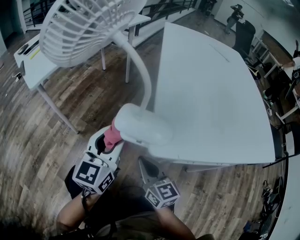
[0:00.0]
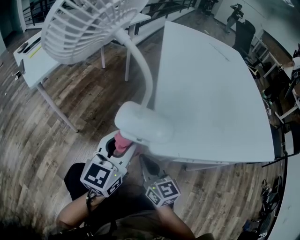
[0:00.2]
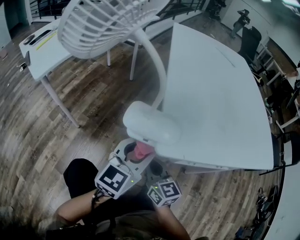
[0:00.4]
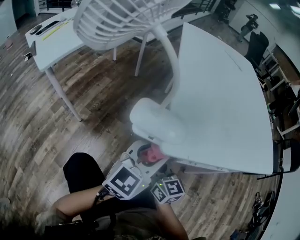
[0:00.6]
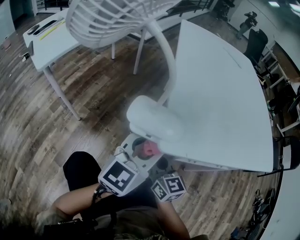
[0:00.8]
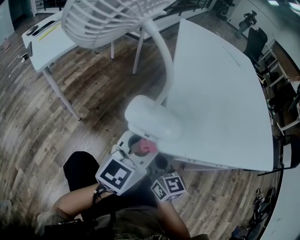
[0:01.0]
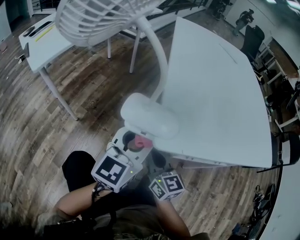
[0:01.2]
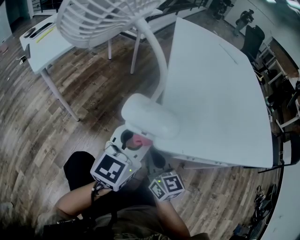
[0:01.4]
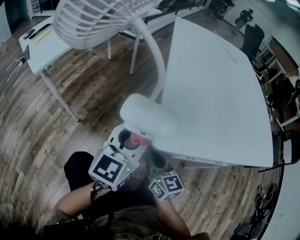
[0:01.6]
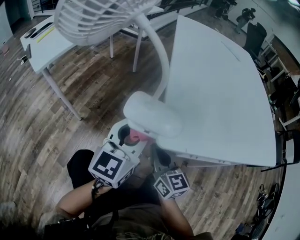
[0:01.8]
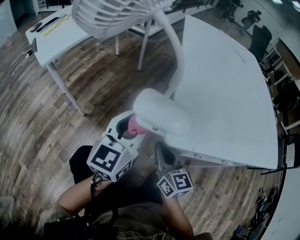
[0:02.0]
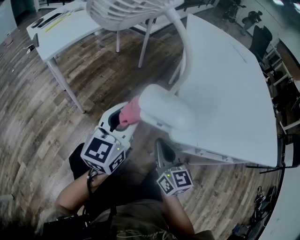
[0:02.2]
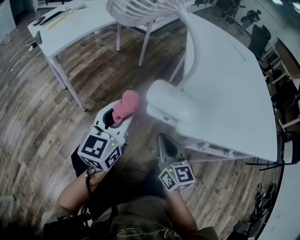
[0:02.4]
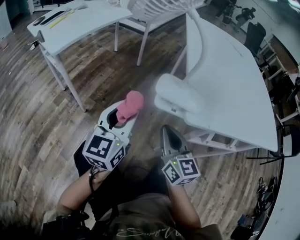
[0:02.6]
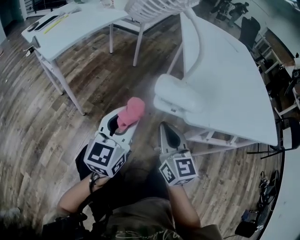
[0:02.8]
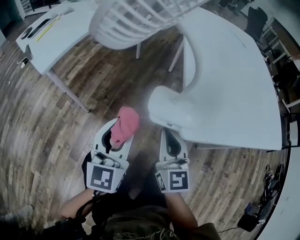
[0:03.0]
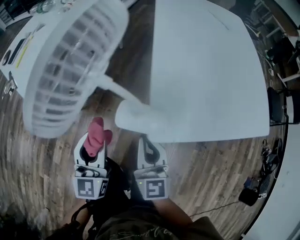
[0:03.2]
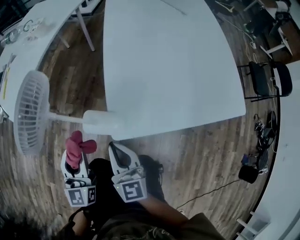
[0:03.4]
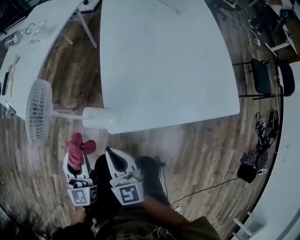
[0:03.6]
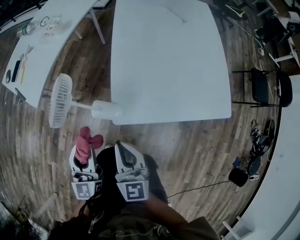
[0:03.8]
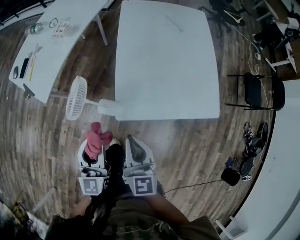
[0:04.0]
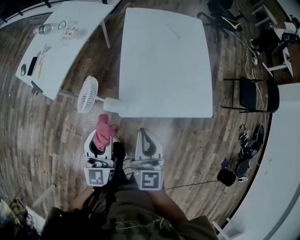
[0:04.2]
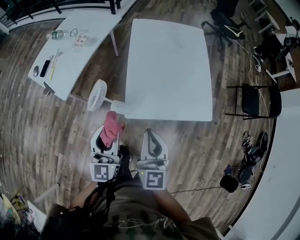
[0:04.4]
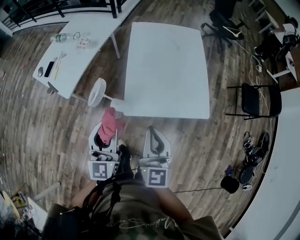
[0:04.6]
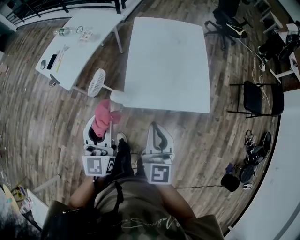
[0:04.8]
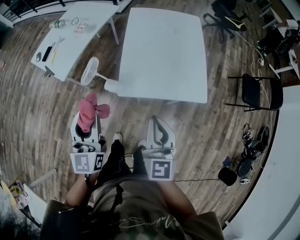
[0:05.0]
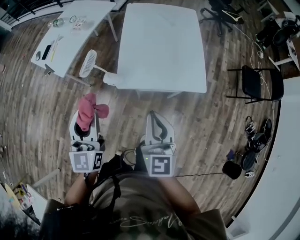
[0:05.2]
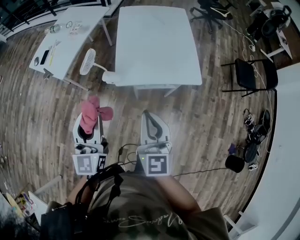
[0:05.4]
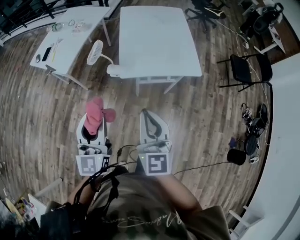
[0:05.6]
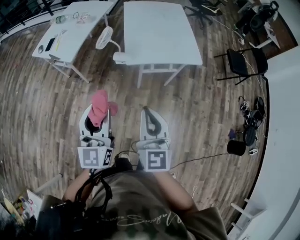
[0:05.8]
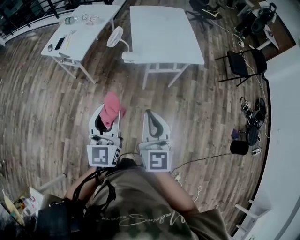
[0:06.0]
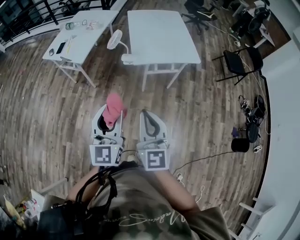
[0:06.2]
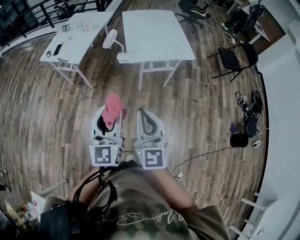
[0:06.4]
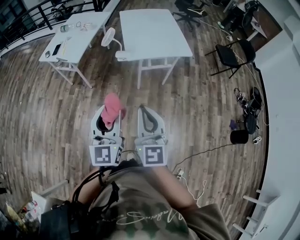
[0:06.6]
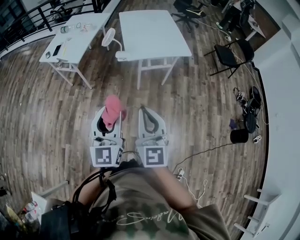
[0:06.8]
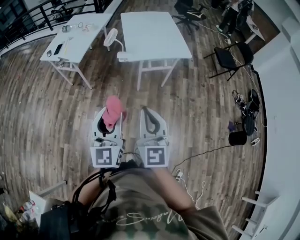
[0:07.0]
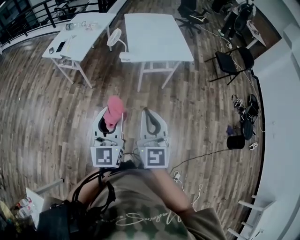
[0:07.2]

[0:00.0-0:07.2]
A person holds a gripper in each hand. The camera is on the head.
0.0 to 1.4 s: The left gripper heads to the right, covering about 10 cm.
1.4 to 2.8 s: The right gripper moves upward, approximately 5 cm. Meanwhile the left gripper goes roughly 15 cm to the left.
2.8 to 4.4 s: The grippers both shift upward by about 40 cm.
4.4 to 5.8 s: Both grippers move backward, approximately 30 cm.
5.8 to 7.2 s: Both grippers travel together backward, roughly 20 cm.

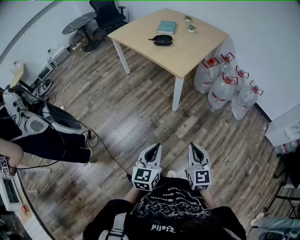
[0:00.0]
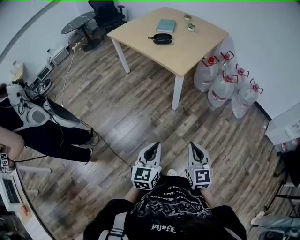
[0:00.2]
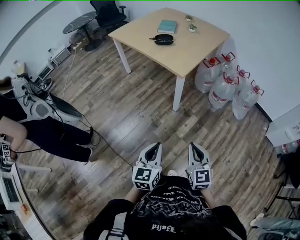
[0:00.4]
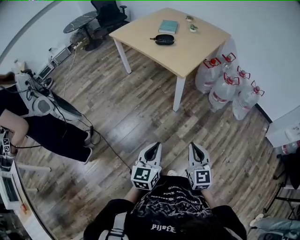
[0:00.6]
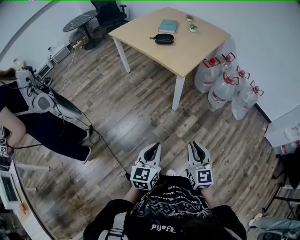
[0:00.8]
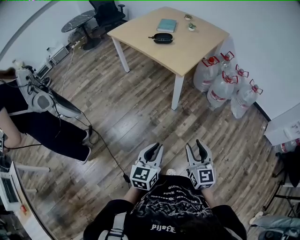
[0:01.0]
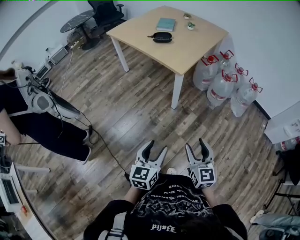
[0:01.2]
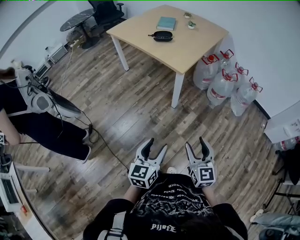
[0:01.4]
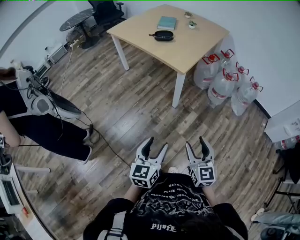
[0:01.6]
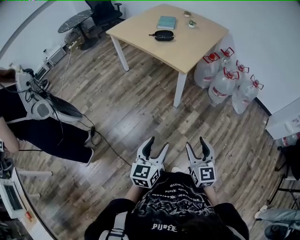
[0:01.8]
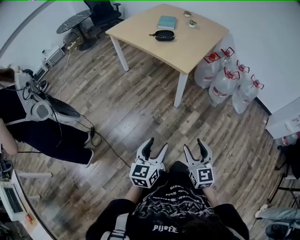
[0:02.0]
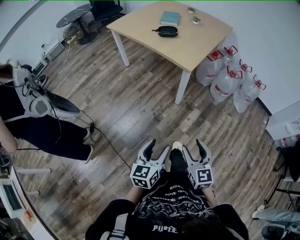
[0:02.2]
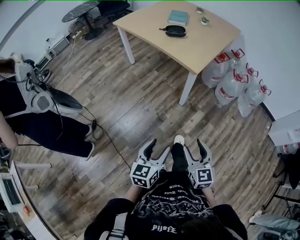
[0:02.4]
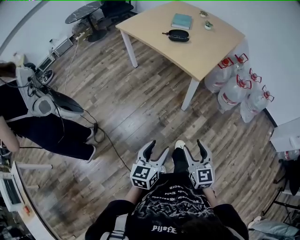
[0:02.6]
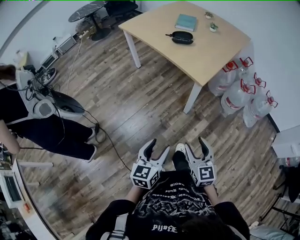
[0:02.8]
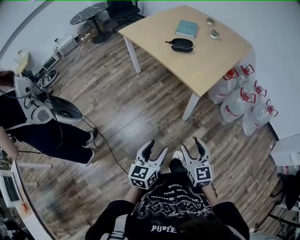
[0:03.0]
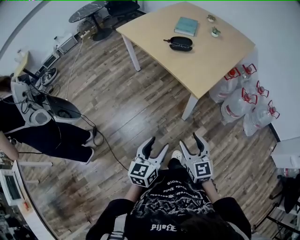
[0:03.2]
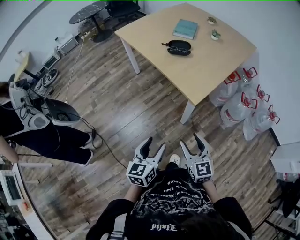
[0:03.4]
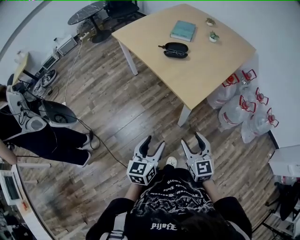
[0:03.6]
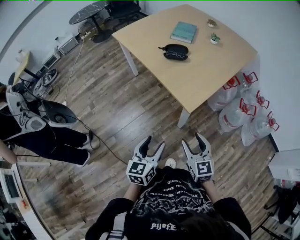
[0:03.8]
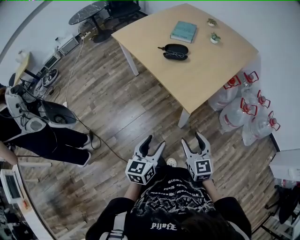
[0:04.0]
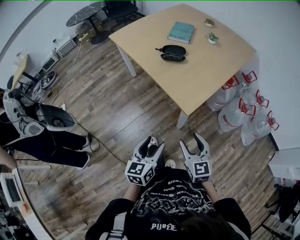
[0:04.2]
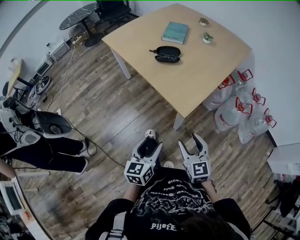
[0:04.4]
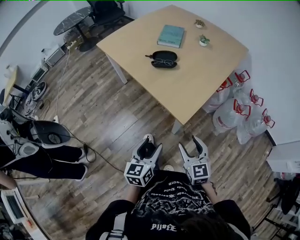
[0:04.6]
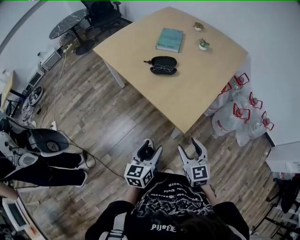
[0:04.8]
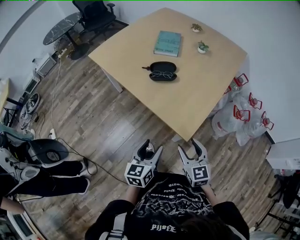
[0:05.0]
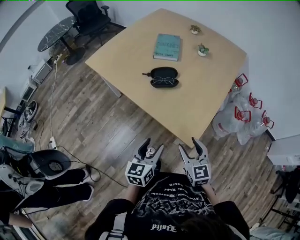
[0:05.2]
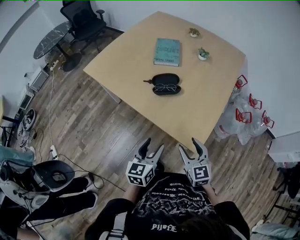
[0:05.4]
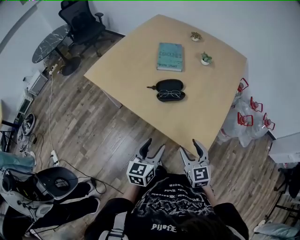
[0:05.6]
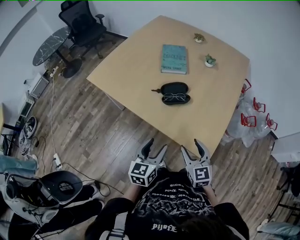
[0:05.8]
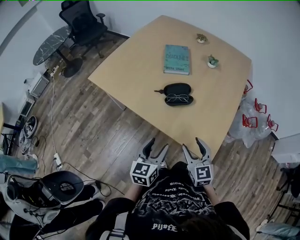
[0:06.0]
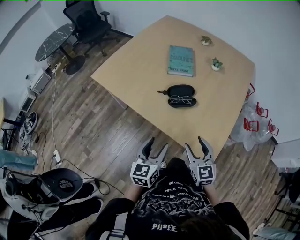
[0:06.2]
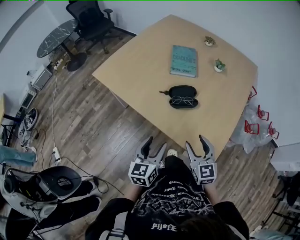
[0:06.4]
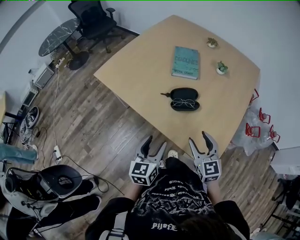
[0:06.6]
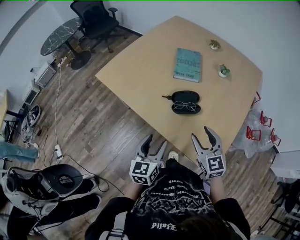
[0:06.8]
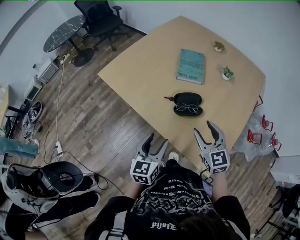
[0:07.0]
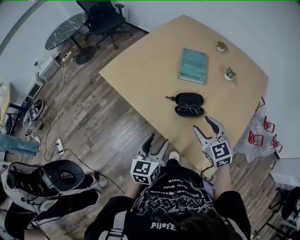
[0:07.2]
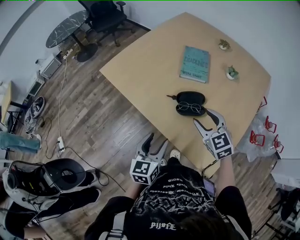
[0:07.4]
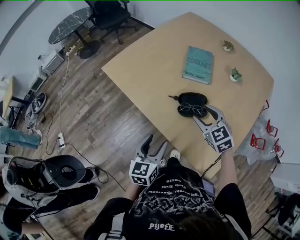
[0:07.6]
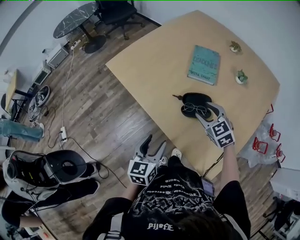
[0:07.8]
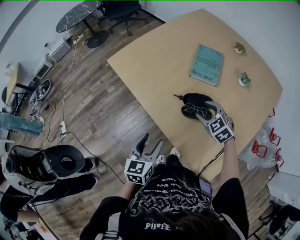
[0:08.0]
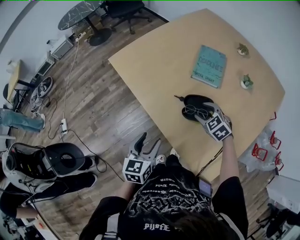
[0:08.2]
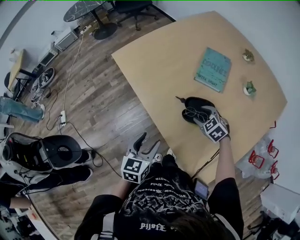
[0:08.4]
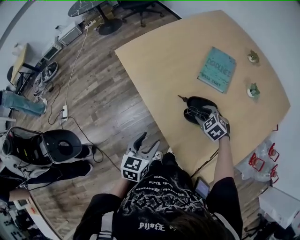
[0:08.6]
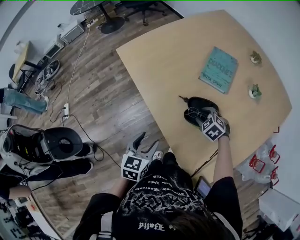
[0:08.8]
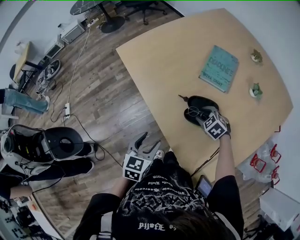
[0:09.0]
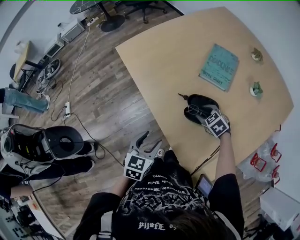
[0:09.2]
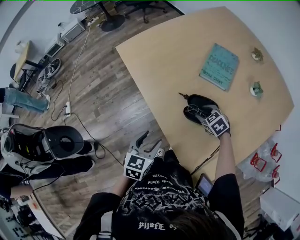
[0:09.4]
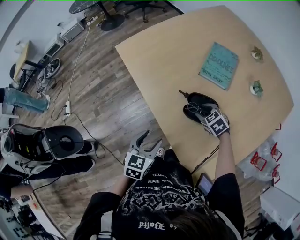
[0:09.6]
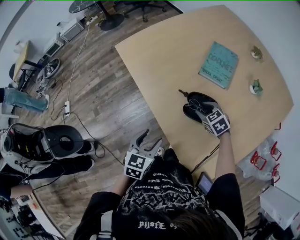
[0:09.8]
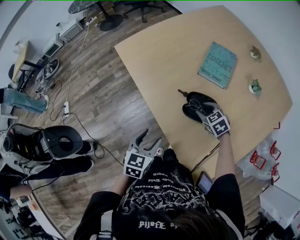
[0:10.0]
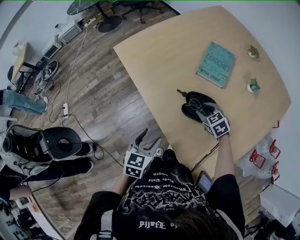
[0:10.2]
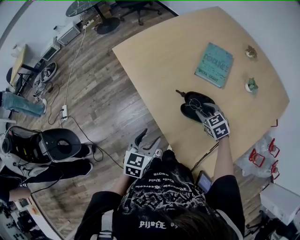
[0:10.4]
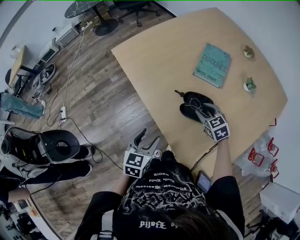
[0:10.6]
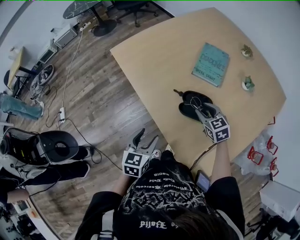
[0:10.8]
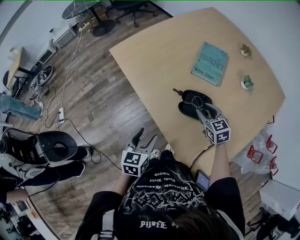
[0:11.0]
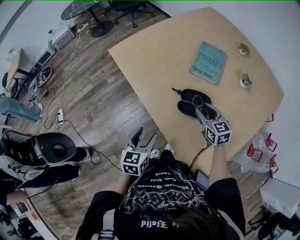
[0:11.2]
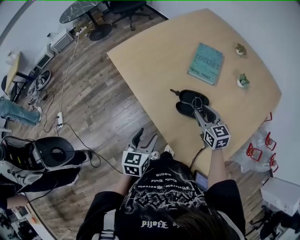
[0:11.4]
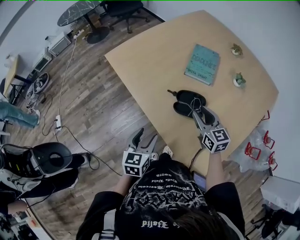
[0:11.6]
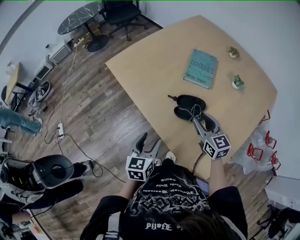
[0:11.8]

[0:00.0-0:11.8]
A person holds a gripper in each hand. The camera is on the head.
0.0 to 1.4 s: The right gripper opens its fingers. The left gripper opens up.
1.4 to 3.0 s: The left gripper travels forward by some 20 cm, while the right gripper is displaced forward and to the left by about 20 cm.
3.0 to 4.4 s: The grippers both shift forward and to the right by approximately 20 cm.
4.4 to 6.0 s: Both grippers travel together forward and to the left, about 35 cm.
6.0 to 7.4 s: The right gripper travels forward by about 20 cm, and swivels some 30 degrees. Meanwhile the left gripper is displaced forward by approximately 10 cm.
7.4 to 8.8 s: The left gripper goes about 5 cm downward. Meanwhile the right gripper shifts approximately 20 cm downward and forward, and angles its fingers downward, by roughly 30 degrees.
8.8 to 10.4 s: The right gripper rotates approximately 20 degrees.
10.4 to 11.8 s: The right gripper goes about 15 cm upward and backward, and changes its angle by roughly 40 degrees.

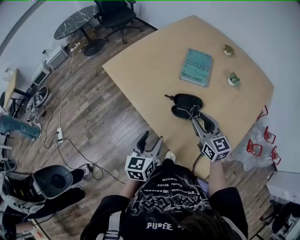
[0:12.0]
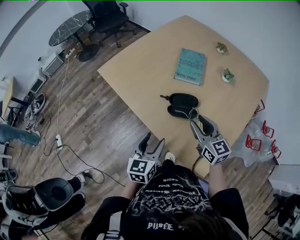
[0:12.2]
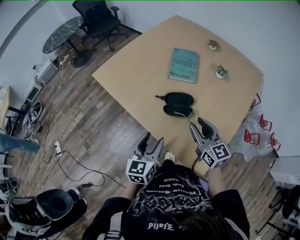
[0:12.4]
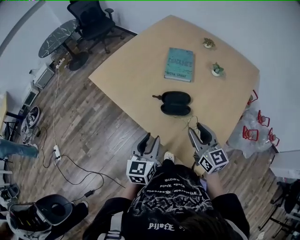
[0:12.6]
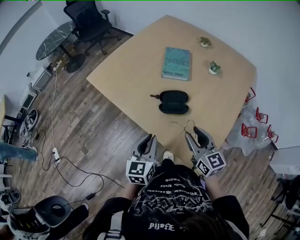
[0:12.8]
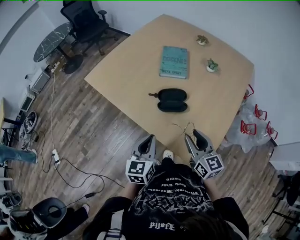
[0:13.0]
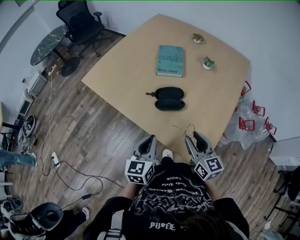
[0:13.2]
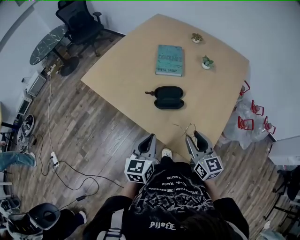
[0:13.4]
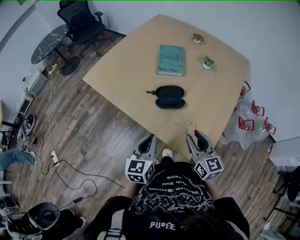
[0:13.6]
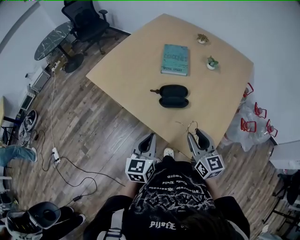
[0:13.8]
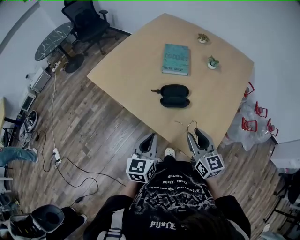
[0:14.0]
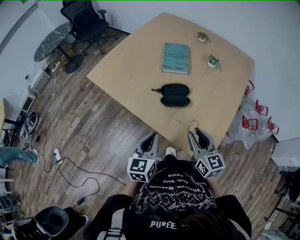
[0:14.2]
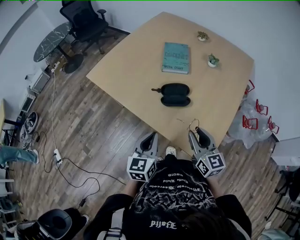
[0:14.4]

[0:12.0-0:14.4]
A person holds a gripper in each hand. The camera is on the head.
12.0 to 13.2 s: The left gripper changes place by roughly 5 cm, and closes. Meanwhile the right gripper goes roughly 15 cm backward.
13.2 to 14.4 s: The grippers move only a little.

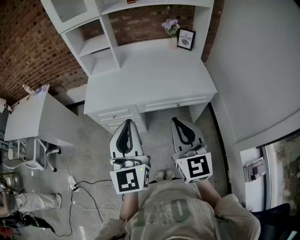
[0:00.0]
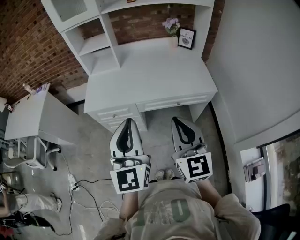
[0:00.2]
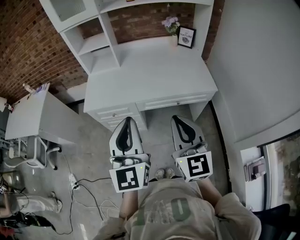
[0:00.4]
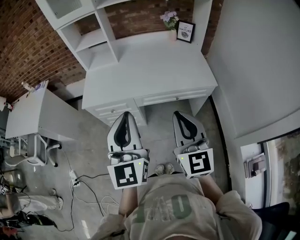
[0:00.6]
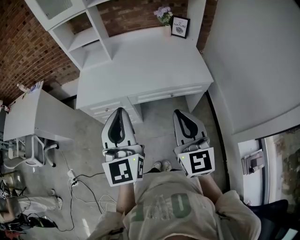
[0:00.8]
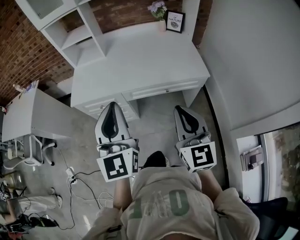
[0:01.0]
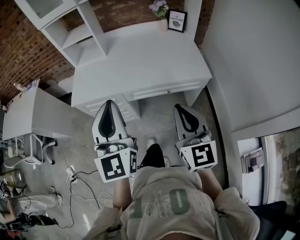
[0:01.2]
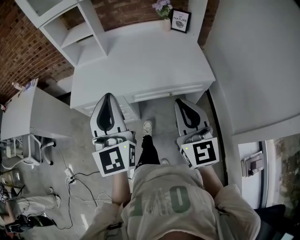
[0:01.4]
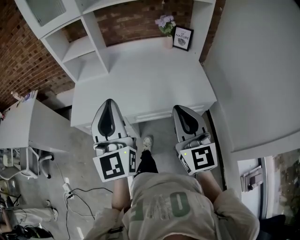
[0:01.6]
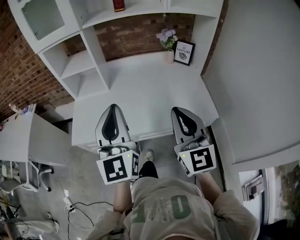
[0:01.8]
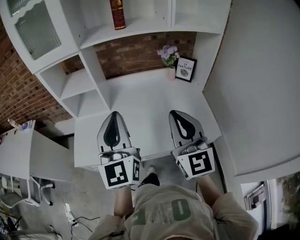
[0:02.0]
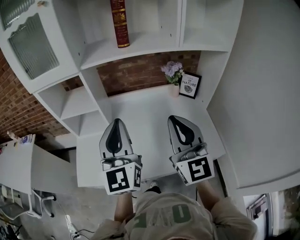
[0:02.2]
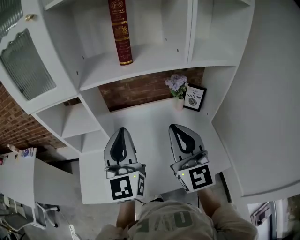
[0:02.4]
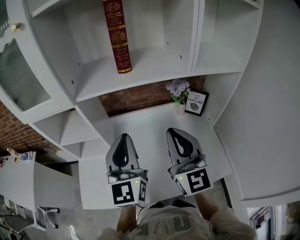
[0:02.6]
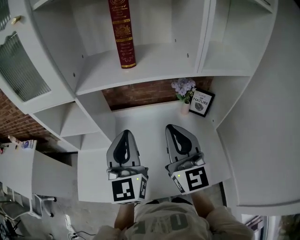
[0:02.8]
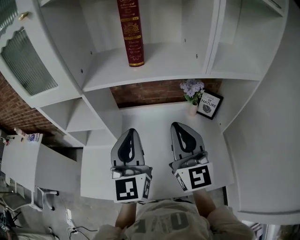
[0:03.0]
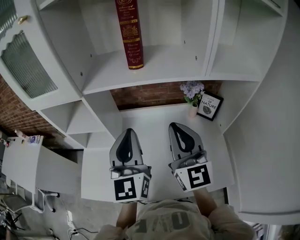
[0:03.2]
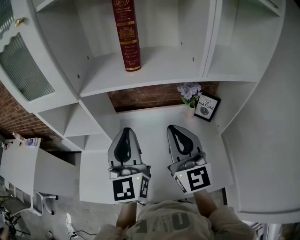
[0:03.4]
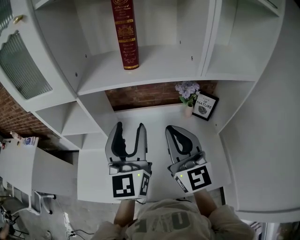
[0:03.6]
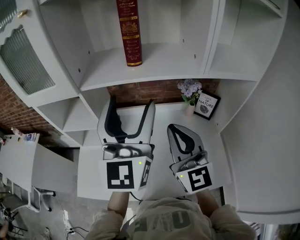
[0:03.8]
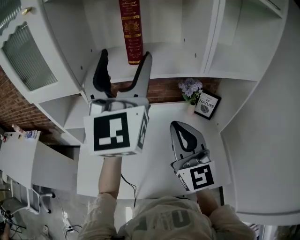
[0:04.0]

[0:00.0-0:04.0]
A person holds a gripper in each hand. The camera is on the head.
0.0 to 1.4 s: The left gripper moves forward, approximately 10 cm. Meanwhile the right gripper shifts about 10 cm to the right and forward.
1.4 to 2.6 s: Both grippers are carried forward, approximately 40 cm.
2.6 to 4.0 s: The left gripper is displaced upward by about 20 cm, rotates roughly 20 degrees, and opens up.
